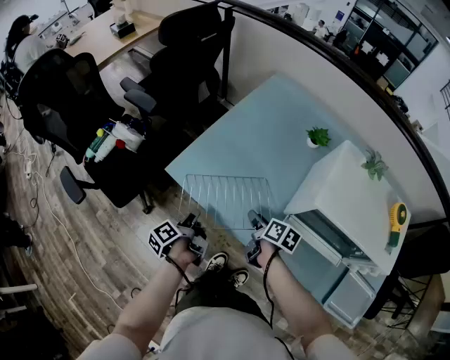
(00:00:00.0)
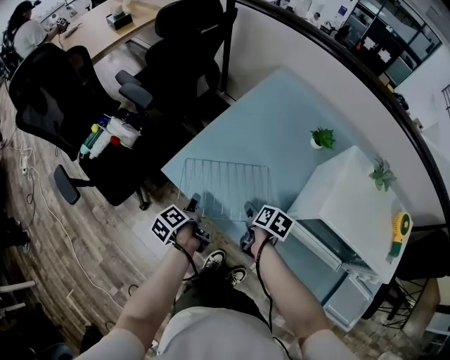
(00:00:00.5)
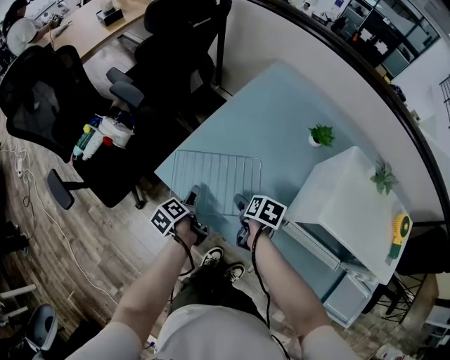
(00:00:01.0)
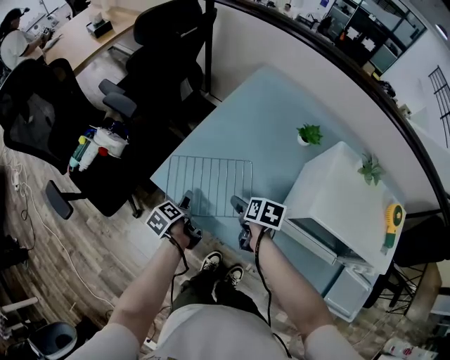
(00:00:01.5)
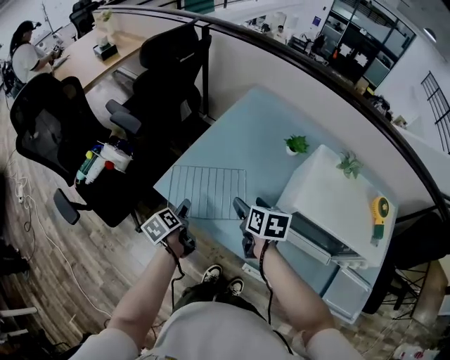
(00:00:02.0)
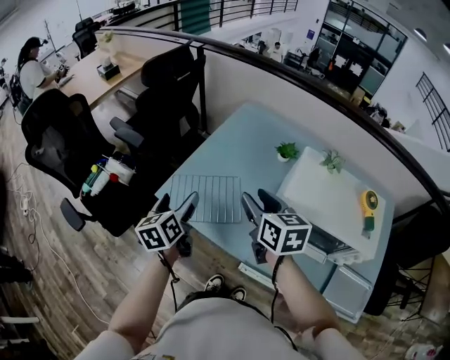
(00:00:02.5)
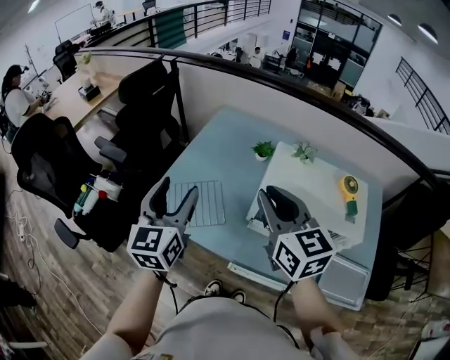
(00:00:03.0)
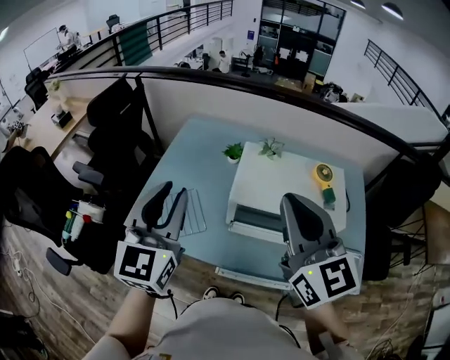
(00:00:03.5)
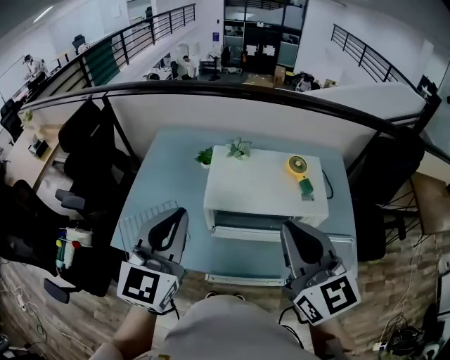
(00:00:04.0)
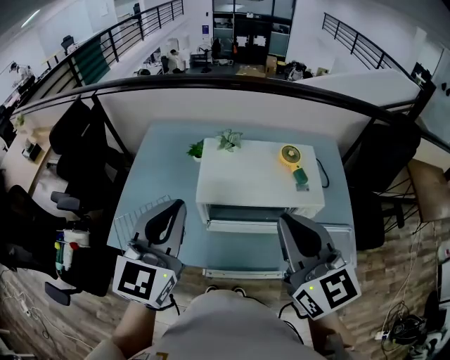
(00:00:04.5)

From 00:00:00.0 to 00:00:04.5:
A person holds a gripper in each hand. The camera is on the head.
From 00:00:00.0 to 00:00:02.0: The right gripper shifts roughly 15 cm upward and forward, and changes its angle by roughly 30 degrees; the left gripper shifts about 5 cm forward, swivels about 40 degrees, and opens.
From 00:00:02.0 to 00:00:04.5: The two grippers go about 35 cm upward. The right gripper tilts its fingers about 40 degrees upward, and closes its fingers, while the left gripper tips its fingers upward by about 40 degrees, and closes up.

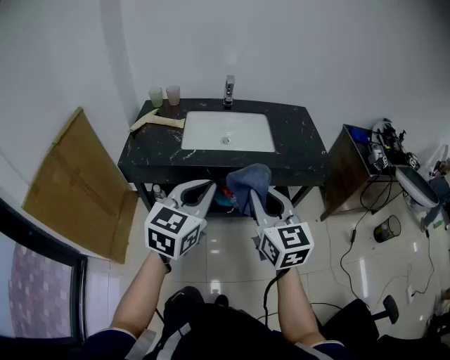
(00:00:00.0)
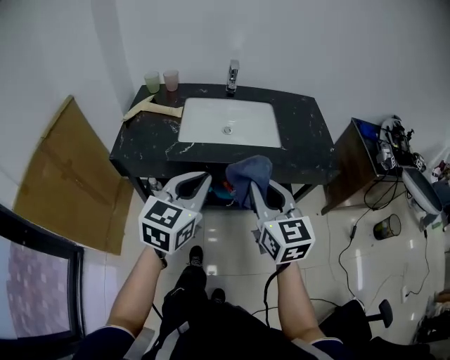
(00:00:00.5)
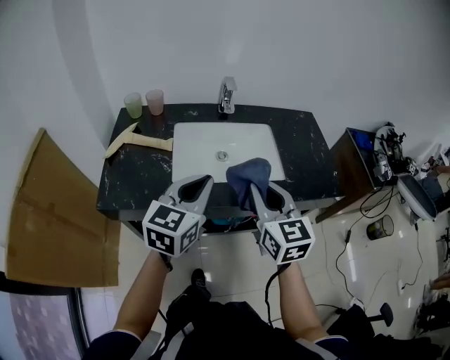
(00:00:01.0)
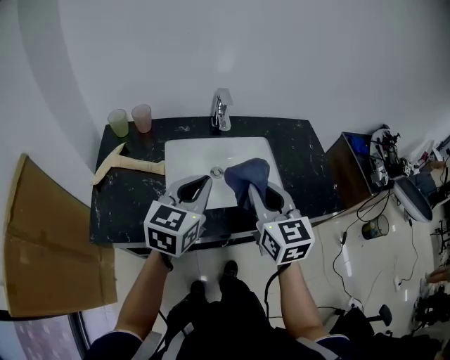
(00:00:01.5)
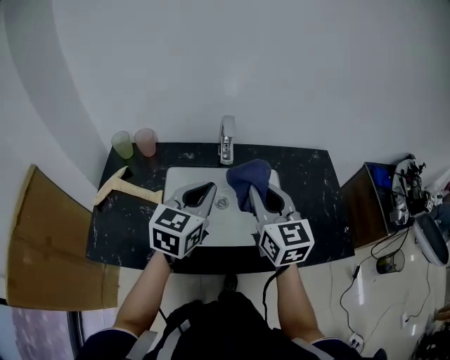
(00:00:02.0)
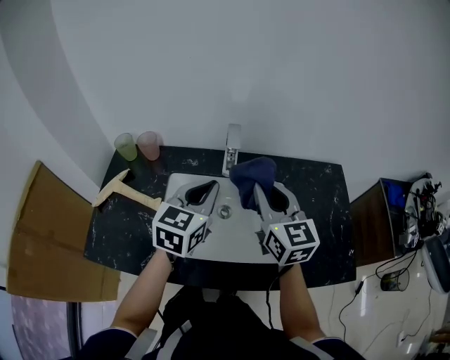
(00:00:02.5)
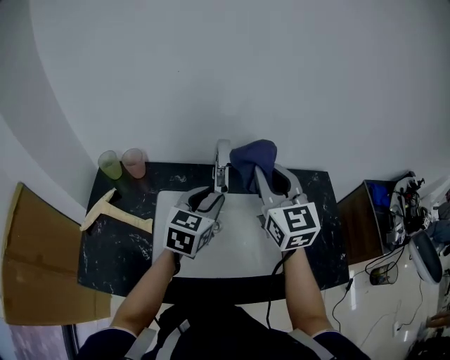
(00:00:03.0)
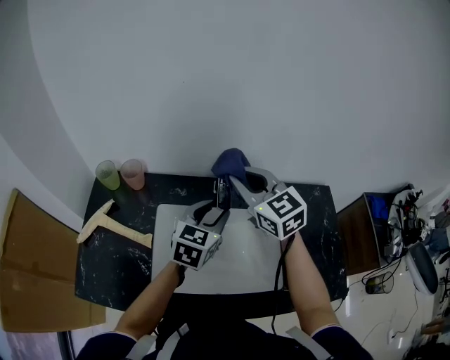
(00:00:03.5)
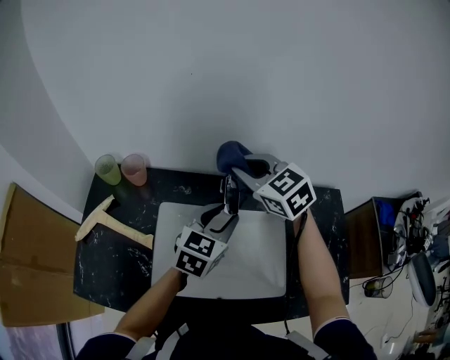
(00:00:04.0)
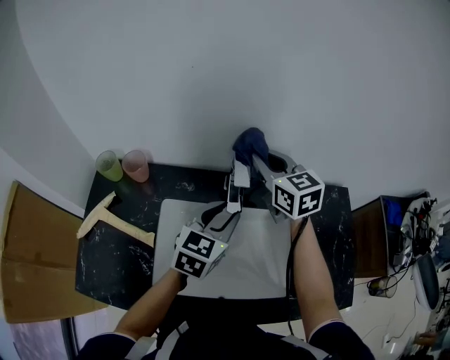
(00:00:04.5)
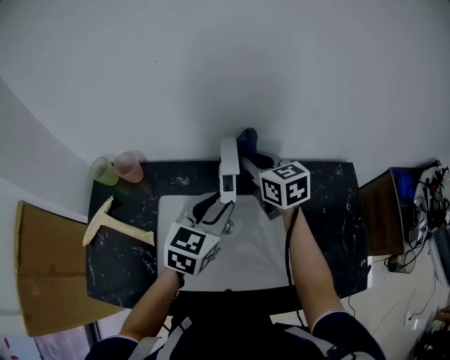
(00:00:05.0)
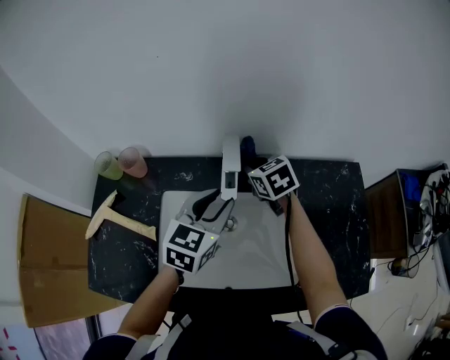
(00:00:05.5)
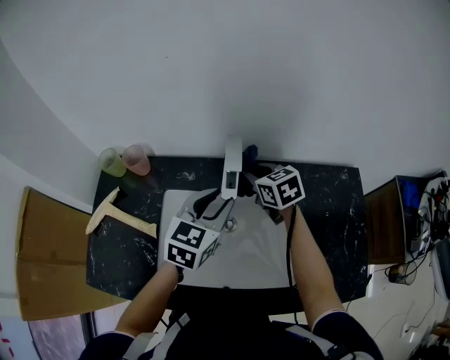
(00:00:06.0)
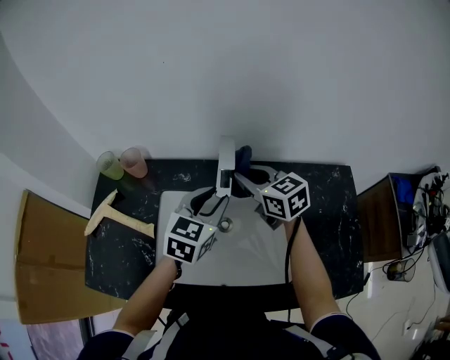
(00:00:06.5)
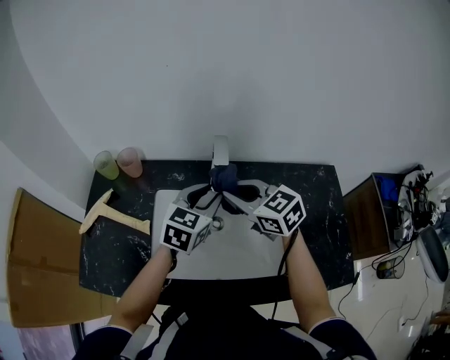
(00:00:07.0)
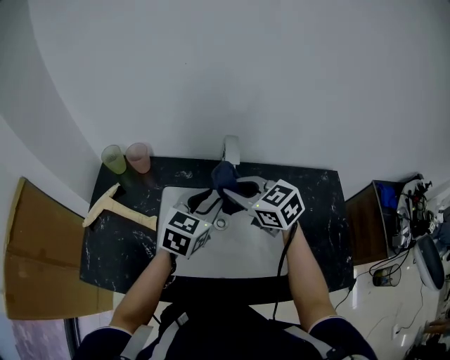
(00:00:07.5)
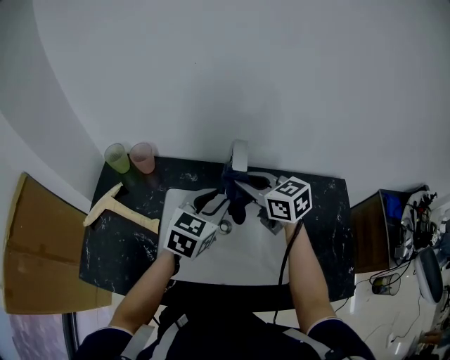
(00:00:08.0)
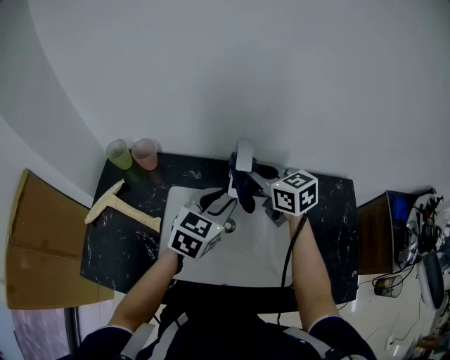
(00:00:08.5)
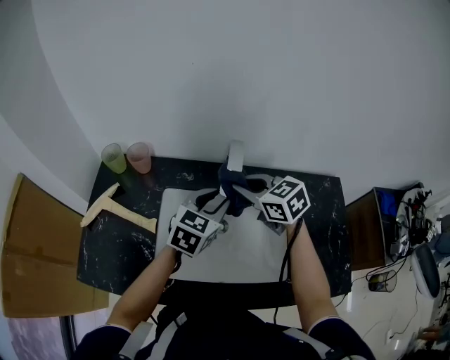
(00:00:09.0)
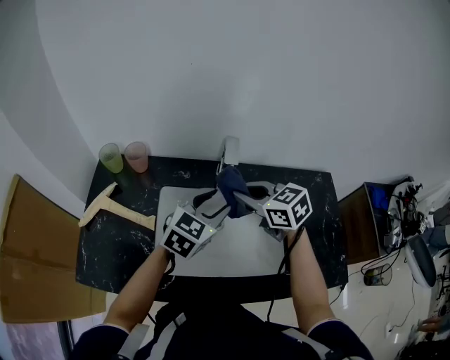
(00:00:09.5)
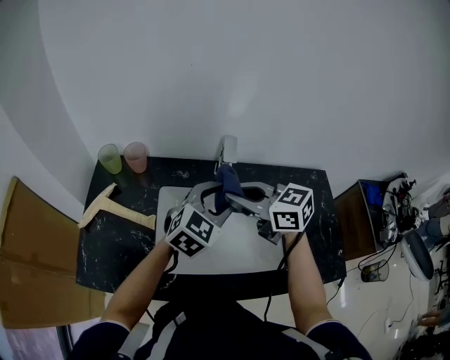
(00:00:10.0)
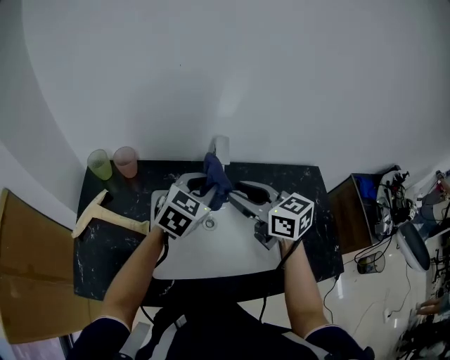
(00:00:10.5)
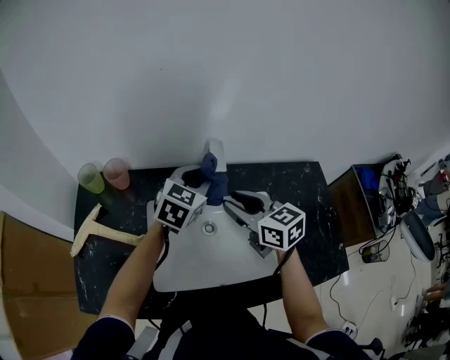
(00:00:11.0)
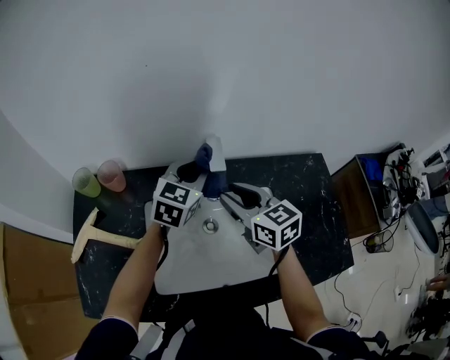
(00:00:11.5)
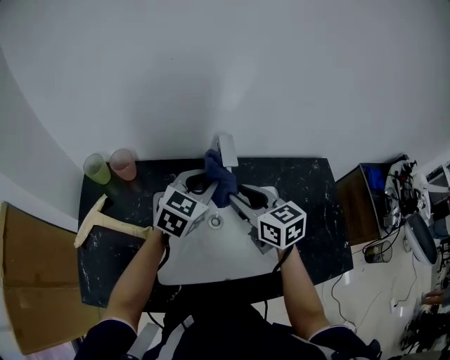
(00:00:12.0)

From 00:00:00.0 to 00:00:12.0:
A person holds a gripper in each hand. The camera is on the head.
From 00:00:00.0 to 00:00:02.0: The pair of grippers is taken forward, roughly 40 cm.
From 00:00:02.0 to 00:00:04.0: The left gripper travels forward and downward by roughly 15 cm, and opens. The right gripper is displaced forward by roughly 20 cm, and swivels approximately 40 degrees.
From 00:00:04.0 to 00:00:06.0: The right gripper goes about 15 cm downward, and changes its angle by some 30 degrees.
From 00:00:06.0 to 00:00:08.0: The right gripper moves upward and backward, some 10 cm.
From 00:00:08.0 to 00:00:10.0: The right gripper shifts some 10 cm backward and upward. The left gripper changes place by roughly 5 cm, and rotates approximately 20 degrees.
From 00:00:10.0 to 00:00:12.0: The right gripper travels downward by roughly 5 cm, swivels about 30 degrees, and opens up, while the left gripper goes roughly 10 cm forward, and closes its fingers.

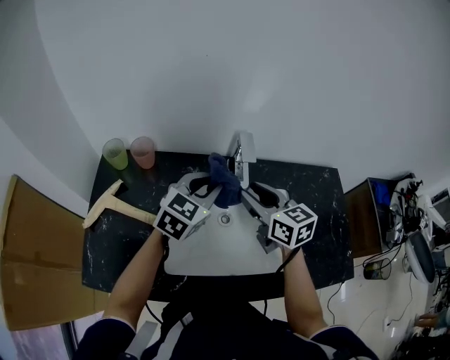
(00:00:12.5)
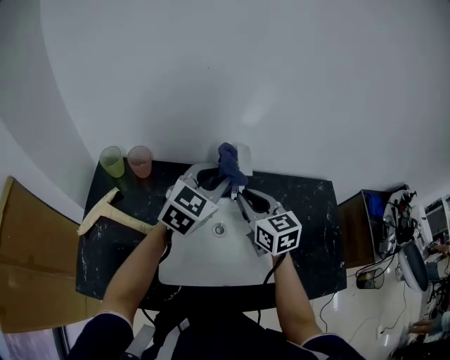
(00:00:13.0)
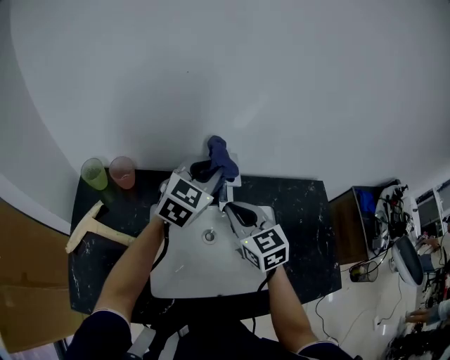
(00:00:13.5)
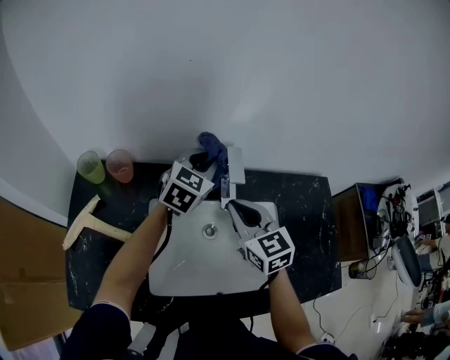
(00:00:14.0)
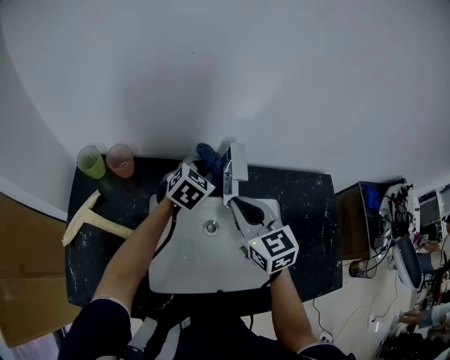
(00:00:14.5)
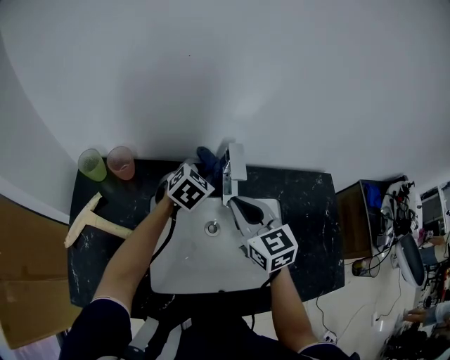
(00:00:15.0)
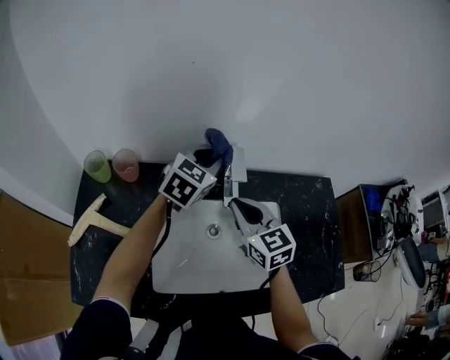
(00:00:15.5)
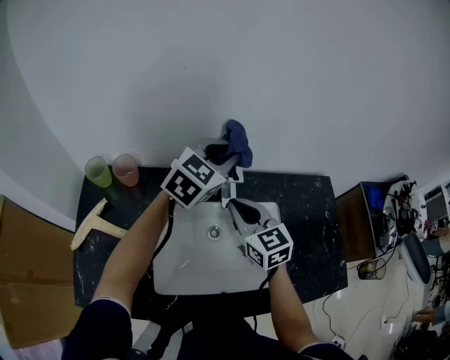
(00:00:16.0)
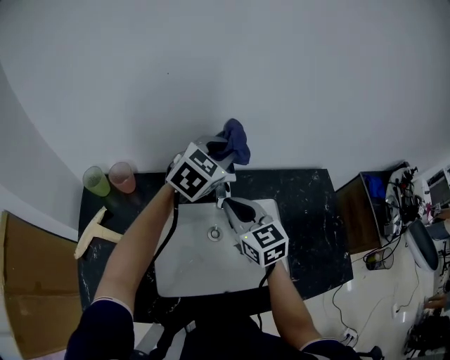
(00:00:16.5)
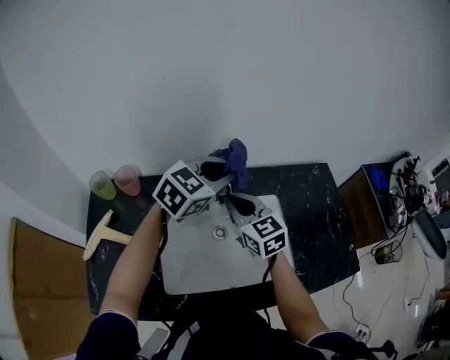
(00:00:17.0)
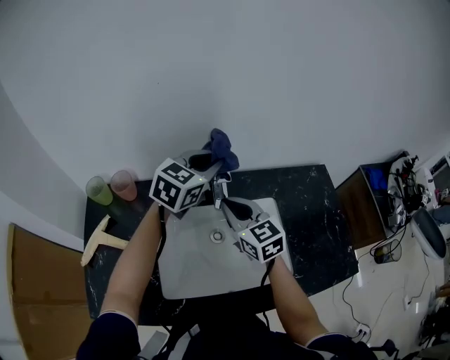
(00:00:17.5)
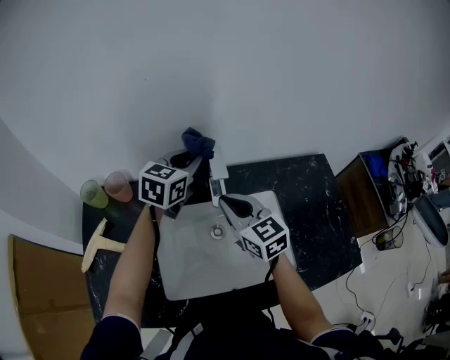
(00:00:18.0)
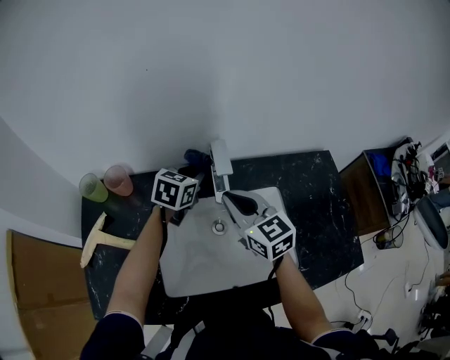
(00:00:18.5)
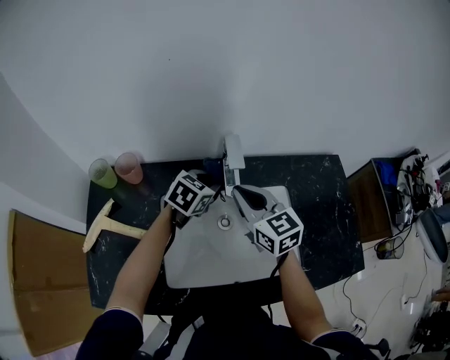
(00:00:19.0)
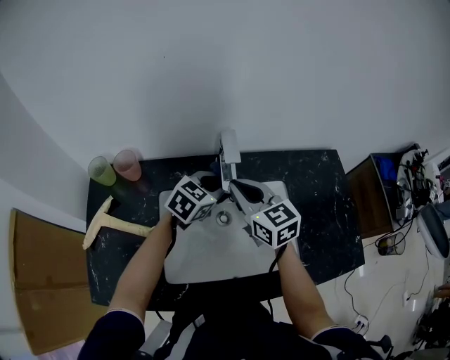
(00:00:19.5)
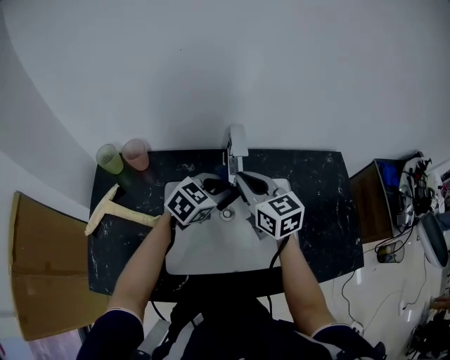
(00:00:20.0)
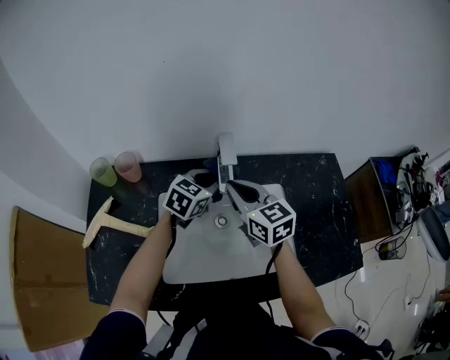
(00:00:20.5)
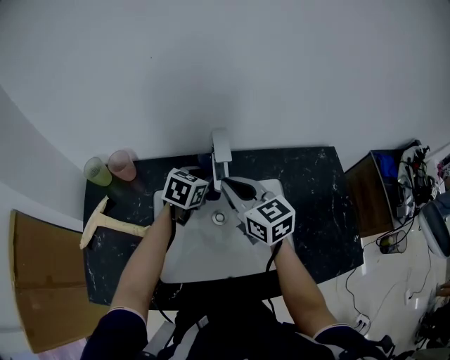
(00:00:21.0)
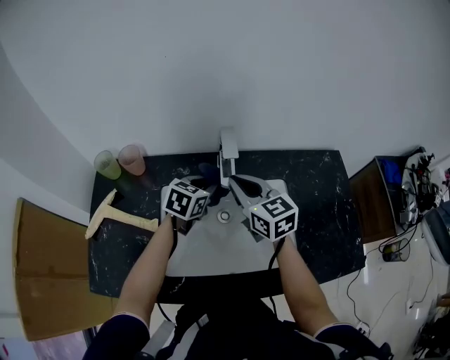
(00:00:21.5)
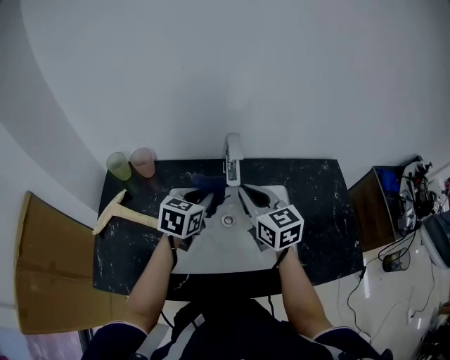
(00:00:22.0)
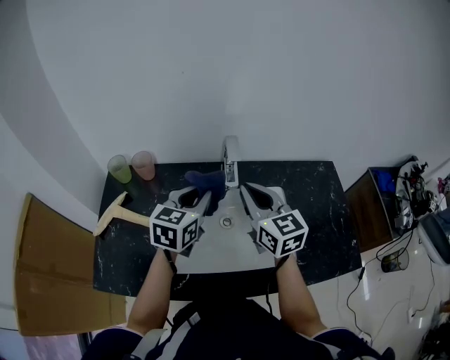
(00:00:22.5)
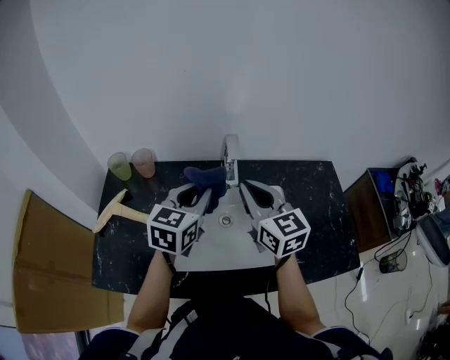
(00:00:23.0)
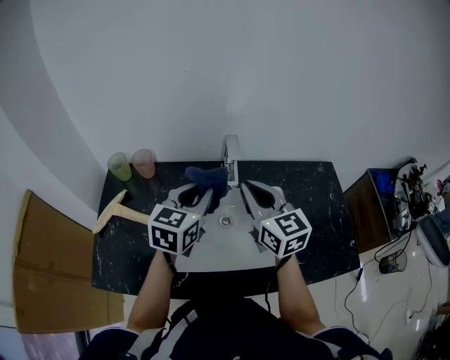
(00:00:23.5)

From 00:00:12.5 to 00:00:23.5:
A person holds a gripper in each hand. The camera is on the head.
From 00:00:12.5 to 00:00:14.5: The left gripper travels forward and downward by approximately 15 cm. The right gripper closes.
From 00:00:14.5 to 00:00:16.0: The left gripper travels upward by some 15 cm, and swivels about 20 degrees.
From 00:00:16.0 to 00:00:18.0: The left gripper heads downward, covering about 5 cm, and travels backward and back again, about 5 cm each way.
From 00:00:18.0 to 00:00:20.0: The left gripper is displaced backward, downward and to the right by about 15 cm, and swivels some 20 degrees.
From 00:00:20.0 to 00:00:21.5: The left gripper swivels approximately 20 degrees.
From 00:00:21.5 to 00:00:23.5: The right gripper is displaced upward and backward by about 10 cm. The left gripper goes roughly 15 cm upward and backward, and swivels some 20 degrees.
